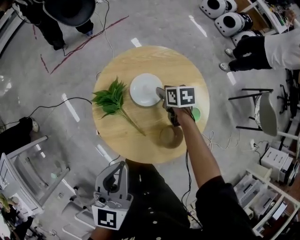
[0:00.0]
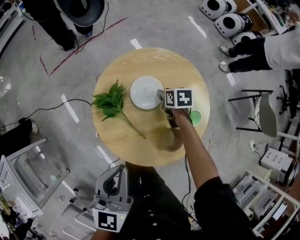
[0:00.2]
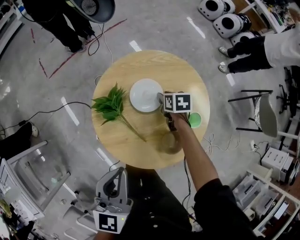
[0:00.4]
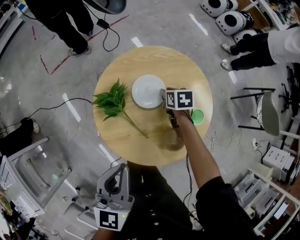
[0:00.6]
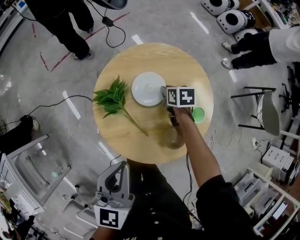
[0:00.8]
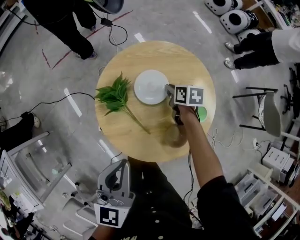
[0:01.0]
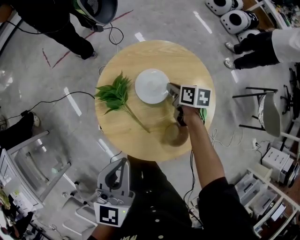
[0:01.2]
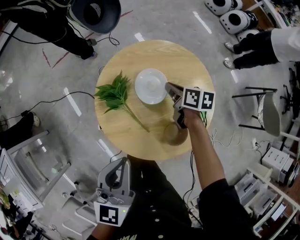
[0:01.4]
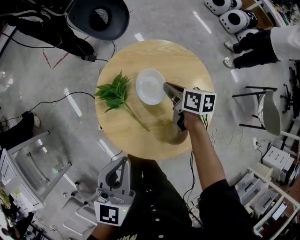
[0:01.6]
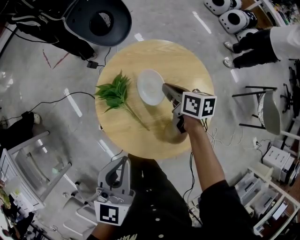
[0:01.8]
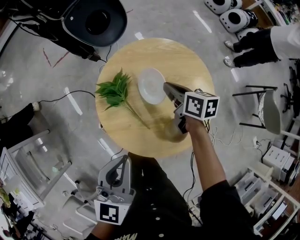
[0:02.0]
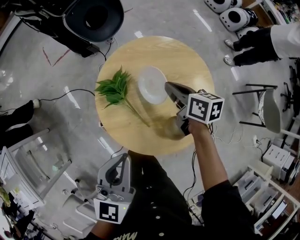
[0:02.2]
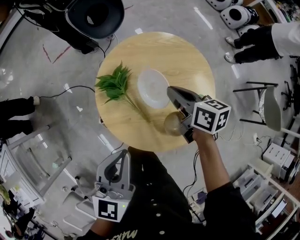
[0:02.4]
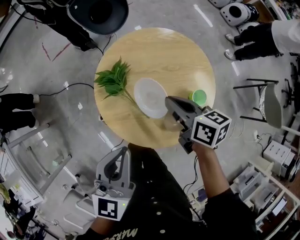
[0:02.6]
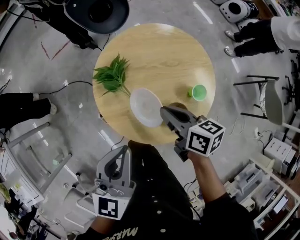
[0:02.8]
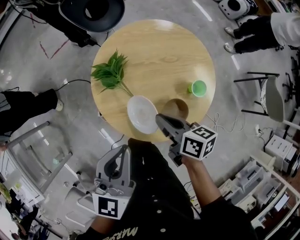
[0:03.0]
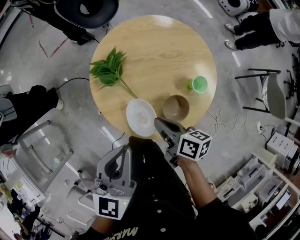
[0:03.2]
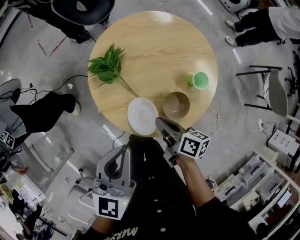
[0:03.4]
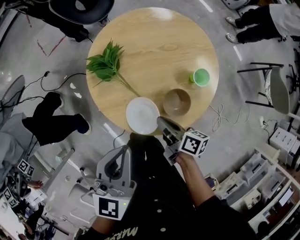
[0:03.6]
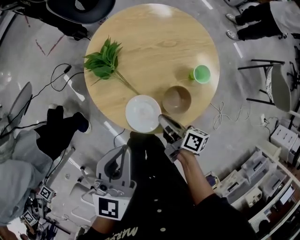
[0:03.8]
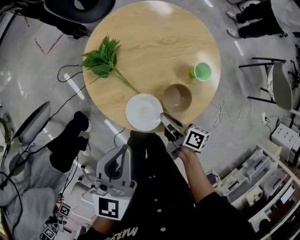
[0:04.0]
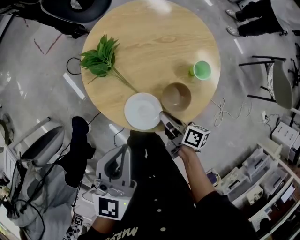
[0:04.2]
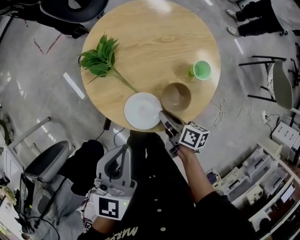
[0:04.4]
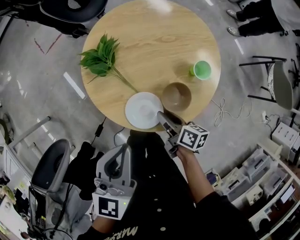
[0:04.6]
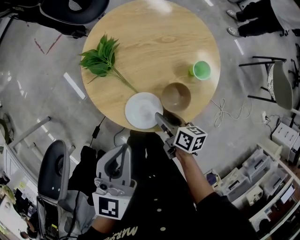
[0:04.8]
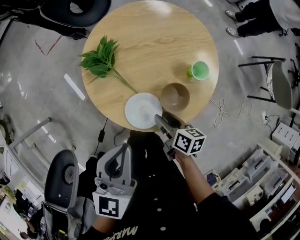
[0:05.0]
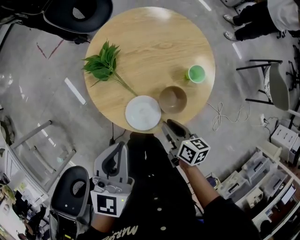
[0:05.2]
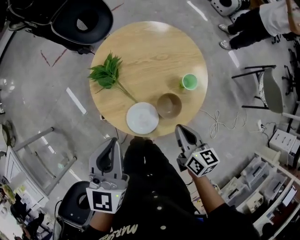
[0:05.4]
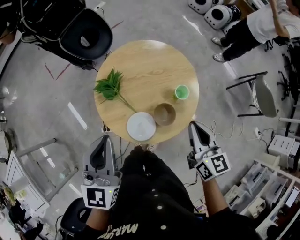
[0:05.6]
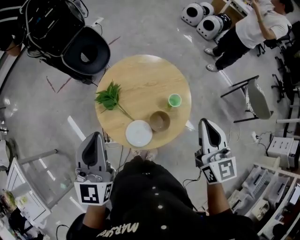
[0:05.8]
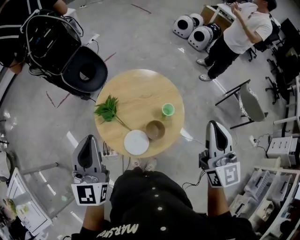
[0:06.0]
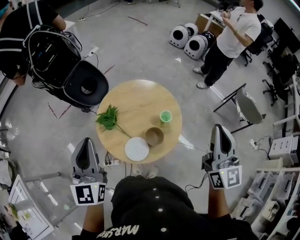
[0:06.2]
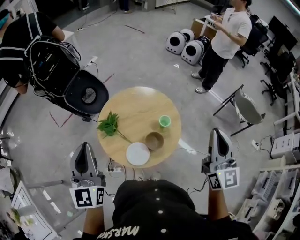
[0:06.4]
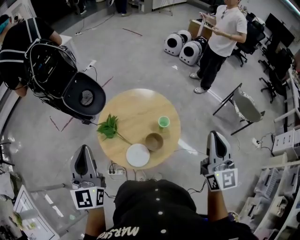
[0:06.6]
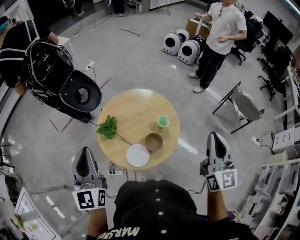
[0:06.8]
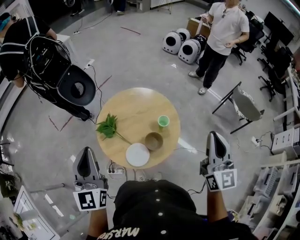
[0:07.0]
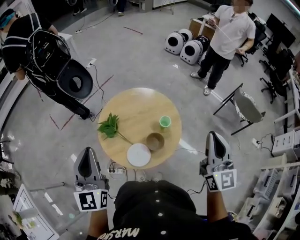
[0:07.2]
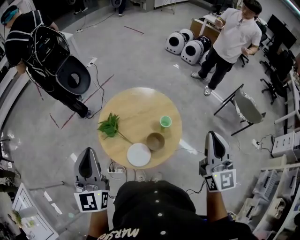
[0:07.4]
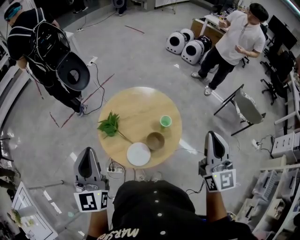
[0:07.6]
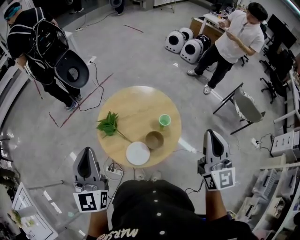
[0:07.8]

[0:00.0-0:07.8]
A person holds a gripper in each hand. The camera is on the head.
0:00.0 to 0:01.6: The right gripper is displaced upward by roughly 5 cm, rotates roughly 20 degrees, and closes.
0:01.6 to 0:03.2: The right gripper shifts about 20 cm backward.
0:03.2 to 0:04.6: The right gripper moves downward, roughly 10 cm.
0:04.6 to 0:06.2: The left gripper is displaced upward by about 25 cm, and rotates about 30 degrees. The right gripper shifts roughly 50 cm upward and to the right, points its fingers approximately 40 degrees further upward, and closes.
0:06.2 to 0:07.8: The grippers make only small movements.

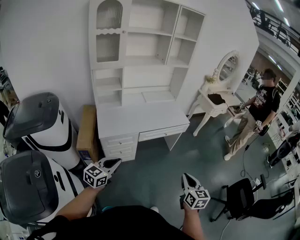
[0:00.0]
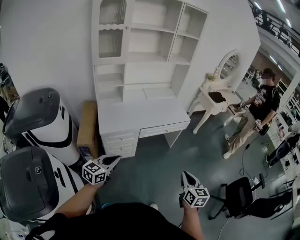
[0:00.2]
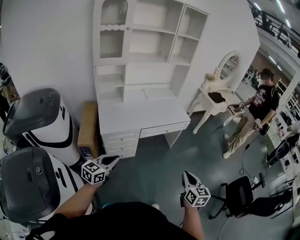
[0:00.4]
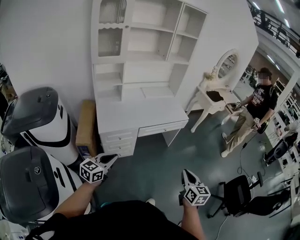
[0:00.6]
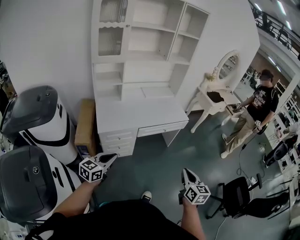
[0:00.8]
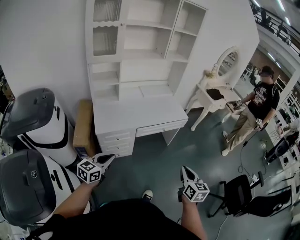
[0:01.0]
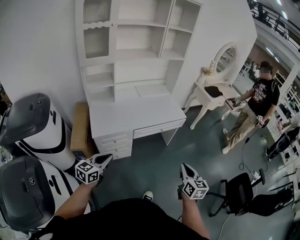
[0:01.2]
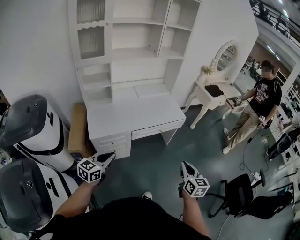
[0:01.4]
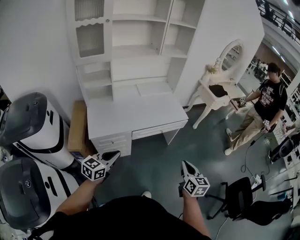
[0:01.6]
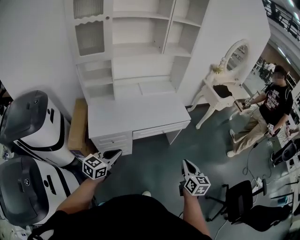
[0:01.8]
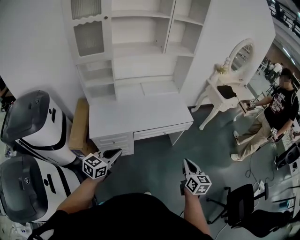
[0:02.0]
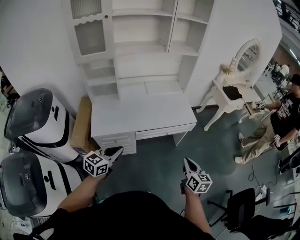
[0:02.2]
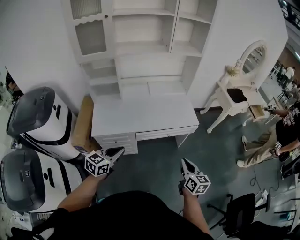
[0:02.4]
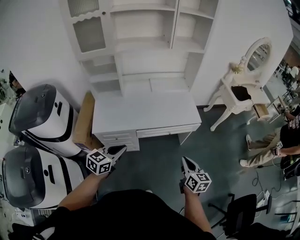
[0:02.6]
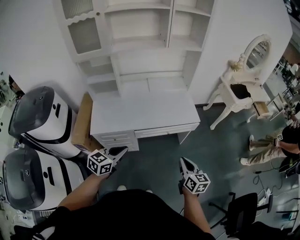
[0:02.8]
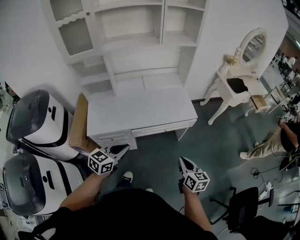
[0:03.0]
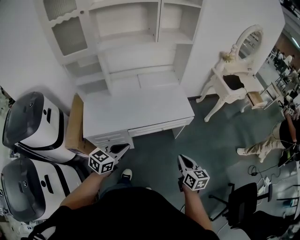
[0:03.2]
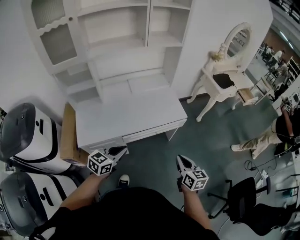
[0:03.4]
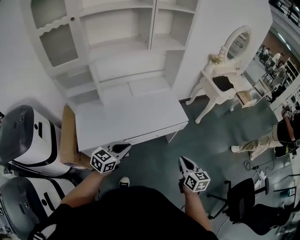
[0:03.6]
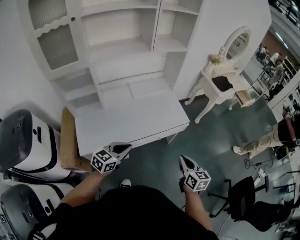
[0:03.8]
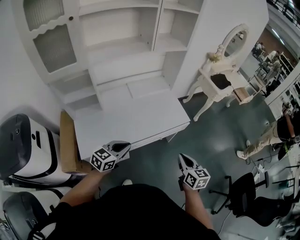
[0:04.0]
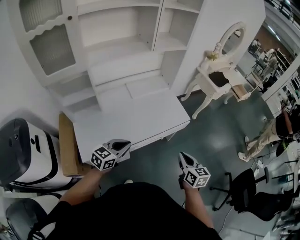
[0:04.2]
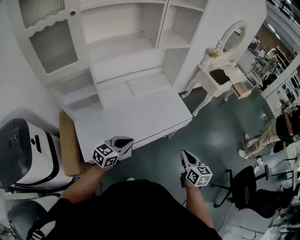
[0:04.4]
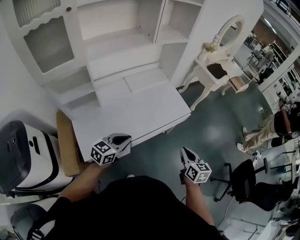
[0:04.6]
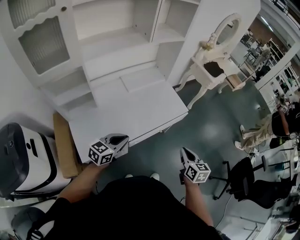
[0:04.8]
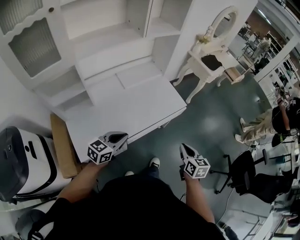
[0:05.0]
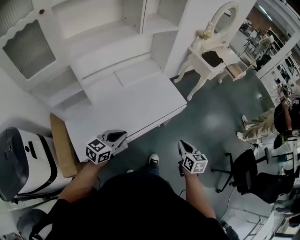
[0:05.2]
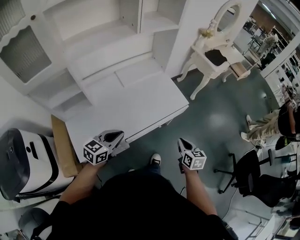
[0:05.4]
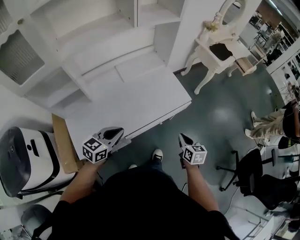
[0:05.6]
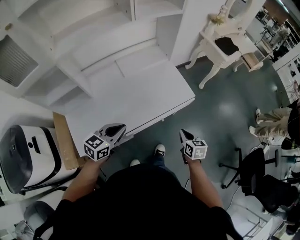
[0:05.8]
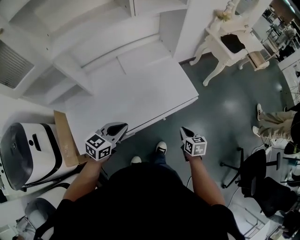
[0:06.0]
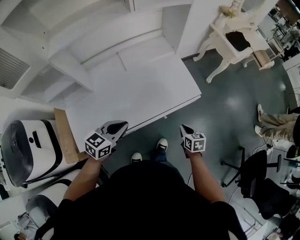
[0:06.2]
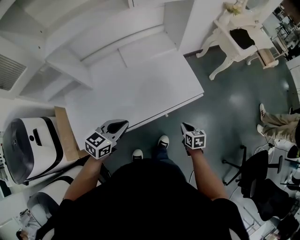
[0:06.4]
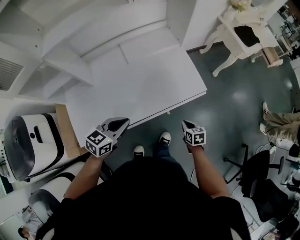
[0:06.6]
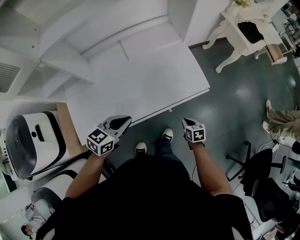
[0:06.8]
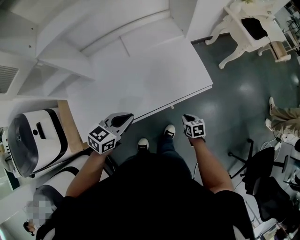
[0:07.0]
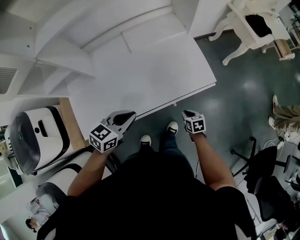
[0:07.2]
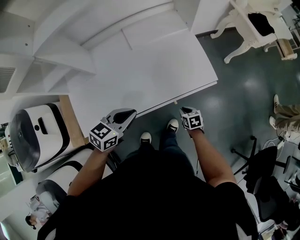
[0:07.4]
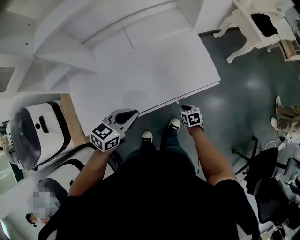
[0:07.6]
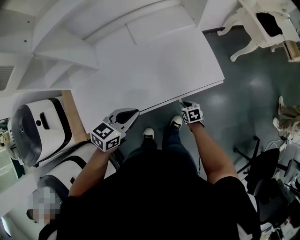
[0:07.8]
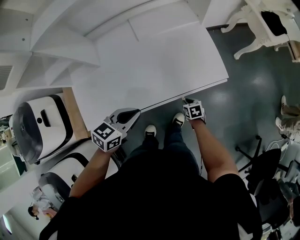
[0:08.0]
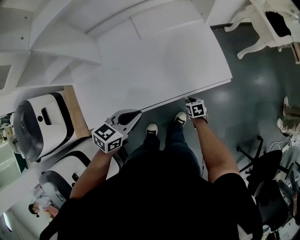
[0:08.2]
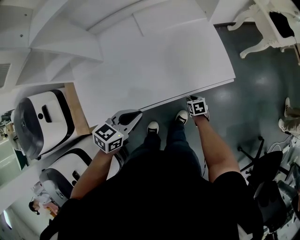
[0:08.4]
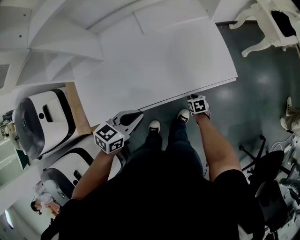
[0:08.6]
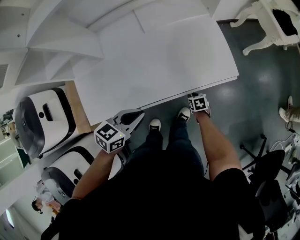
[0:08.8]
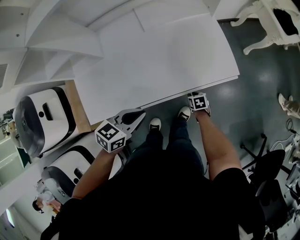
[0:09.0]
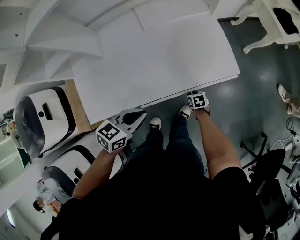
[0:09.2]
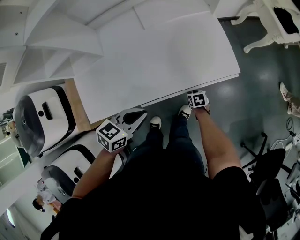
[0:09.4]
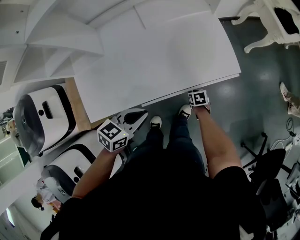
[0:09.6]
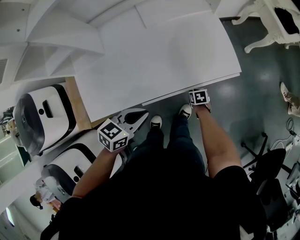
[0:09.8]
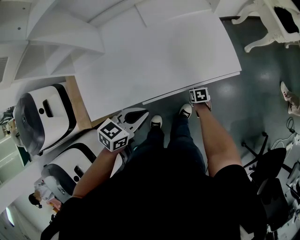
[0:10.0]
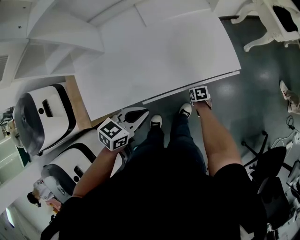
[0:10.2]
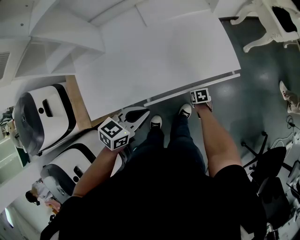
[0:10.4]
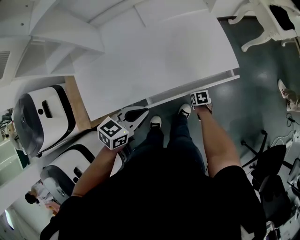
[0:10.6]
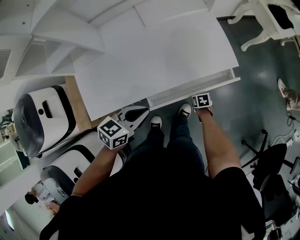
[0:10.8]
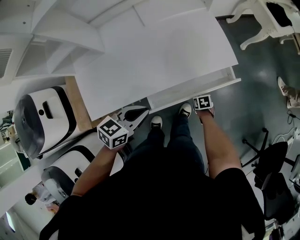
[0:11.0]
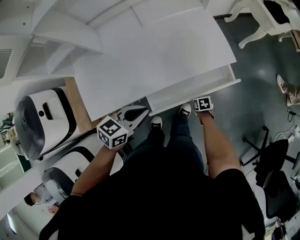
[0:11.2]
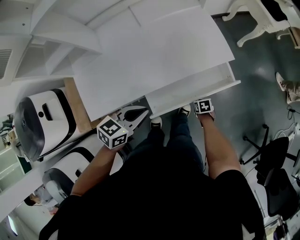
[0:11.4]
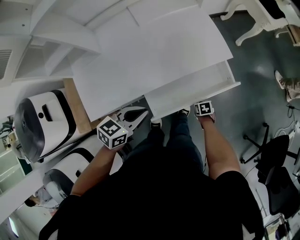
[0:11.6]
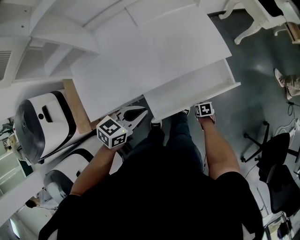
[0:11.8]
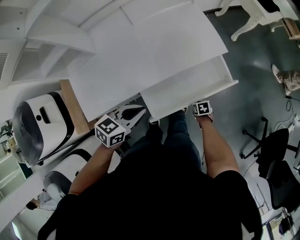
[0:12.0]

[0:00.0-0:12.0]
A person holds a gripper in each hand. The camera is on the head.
0:00.0 to 0:01.6: The grippers both shift forward by approximately 15 cm.
0:01.6 to 0:03.0: The right gripper moves forward and downward, approximately 15 cm. The left gripper goes approximately 15 cm forward and to the right.
0:03.0 to 0:04.4: The right gripper moves to the left and forward, roughly 15 cm. The left gripper travels forward and to the left by roughly 15 cm, and swivels roughly 20 degrees.
0:04.4 to 0:06.0: The left gripper travels forward and downward by roughly 10 cm; the right gripper moves downward and forward, some 25 cm.
0:06.0 to 0:07.6: The left gripper moves about 5 cm. Meanwhile the right gripper moves downward, approximately 20 cm, and swivels some 20 degrees.
0:07.6 to 0:09.0: The right gripper is displaced downward by approximately 10 cm; the left gripper shifts by about 5 cm.
0:09.0 to 0:10.4: The grippers stay close to where they were, moving slightly.
0:10.4 to 0:12.0: The right gripper shifts about 15 cm backward.

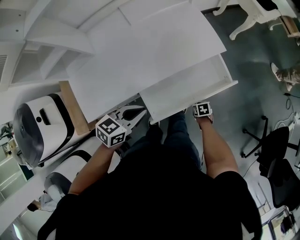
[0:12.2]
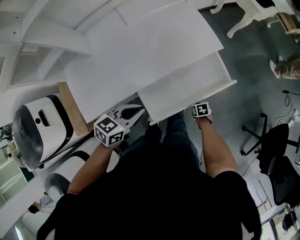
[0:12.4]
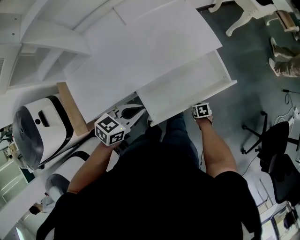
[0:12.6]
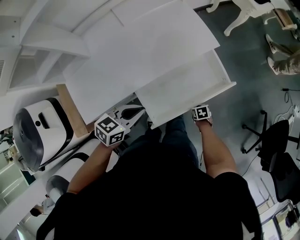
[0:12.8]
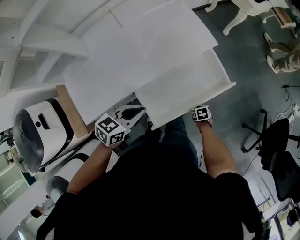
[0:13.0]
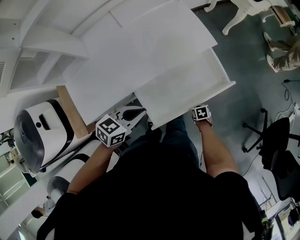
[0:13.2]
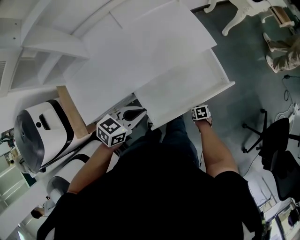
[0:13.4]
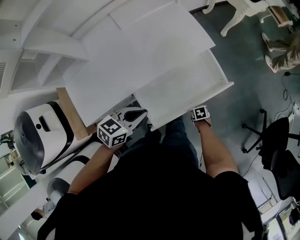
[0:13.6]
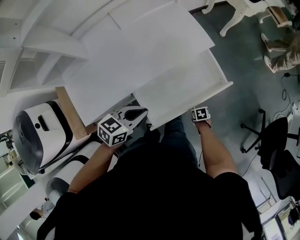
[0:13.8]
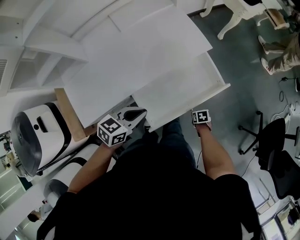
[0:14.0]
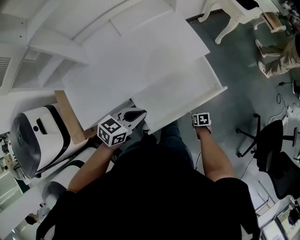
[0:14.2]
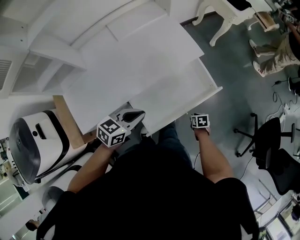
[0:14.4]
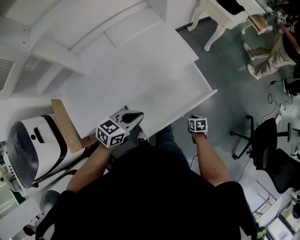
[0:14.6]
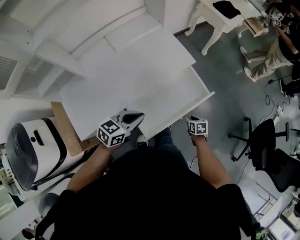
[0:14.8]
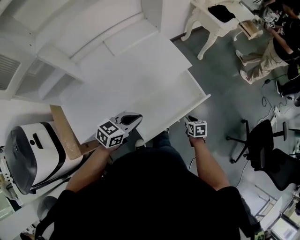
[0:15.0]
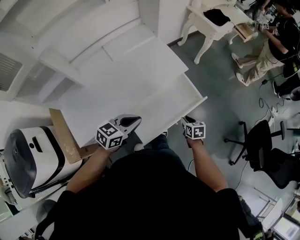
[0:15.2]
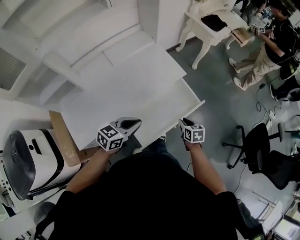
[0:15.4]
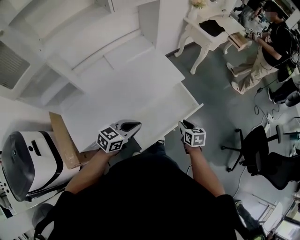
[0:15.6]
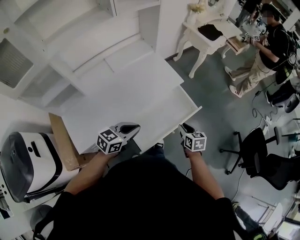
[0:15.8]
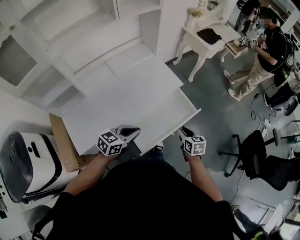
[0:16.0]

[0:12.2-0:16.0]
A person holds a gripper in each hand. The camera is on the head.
0:12.2 to 0:13.4: The right gripper ends up some 5 cm from where it was.
0:13.4 to 0:14.8: The right gripper shifts about 15 cm upward, while the left gripper ends up roughly 5 cm from where it was.
0:14.8 to 0:16.0: The right gripper shifts about 20 cm upward, and changes its angle by approximately 20 degrees. Meanwhile the left gripper ends up some 5 cm from where it was.
